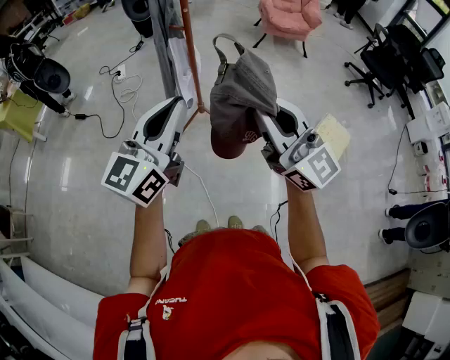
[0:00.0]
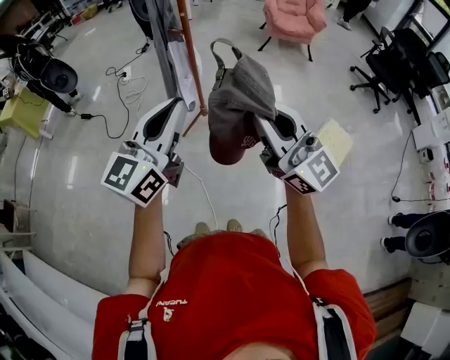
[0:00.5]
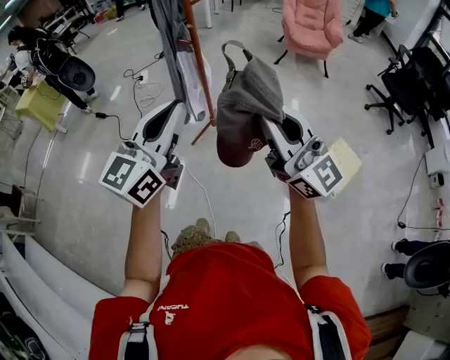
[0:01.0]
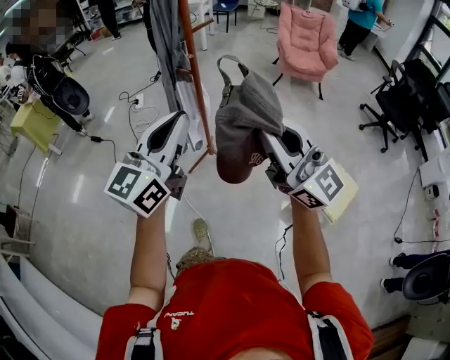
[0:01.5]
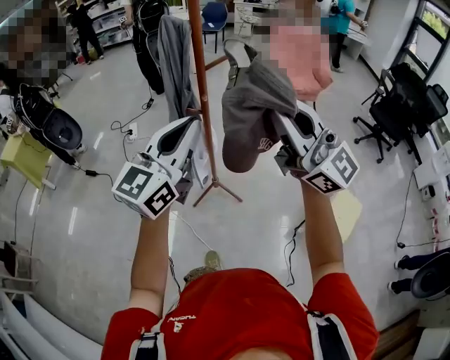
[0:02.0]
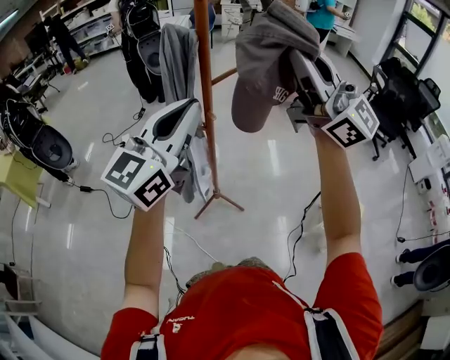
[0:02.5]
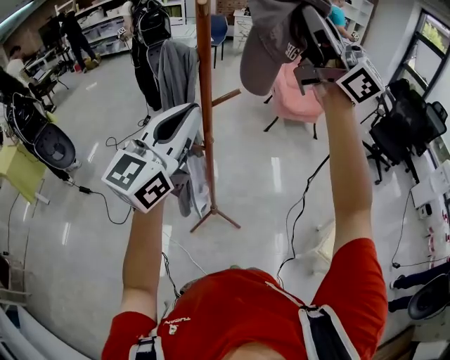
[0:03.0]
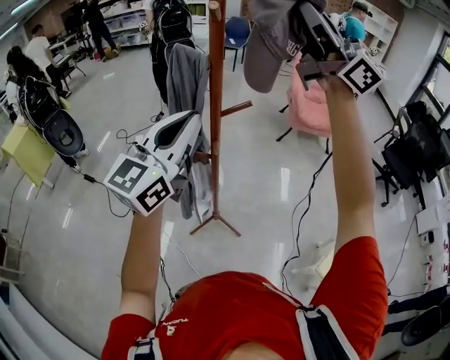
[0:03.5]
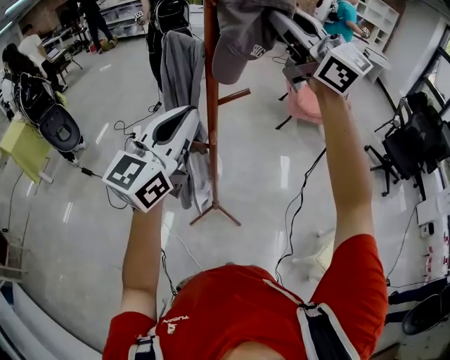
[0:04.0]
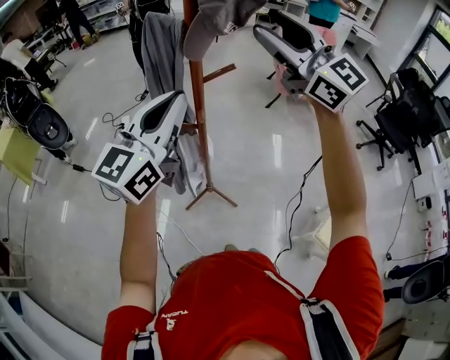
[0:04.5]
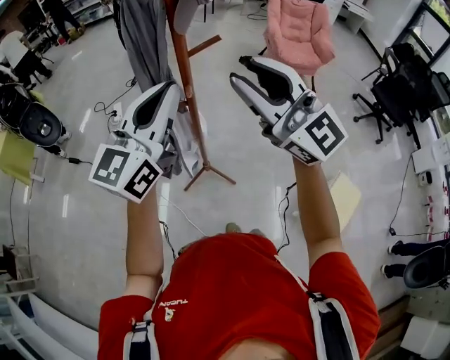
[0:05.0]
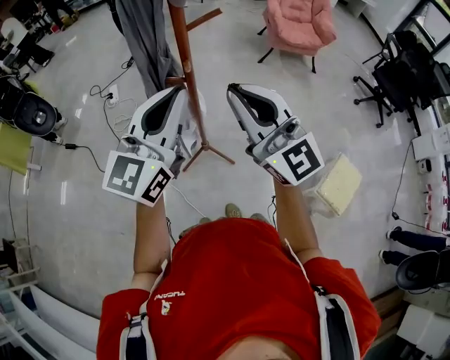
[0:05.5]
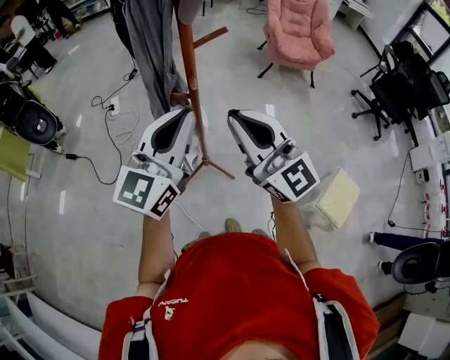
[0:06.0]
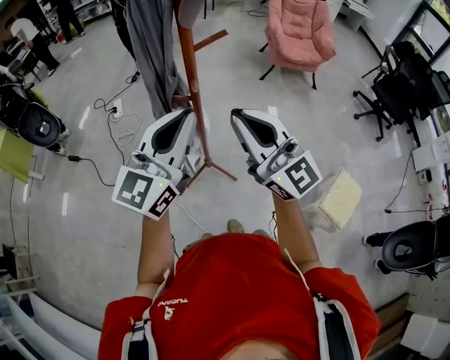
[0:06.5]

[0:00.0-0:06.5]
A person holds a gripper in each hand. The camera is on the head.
0:00.0 to 0:02.0: The right gripper travels forward and upward by roughly 30 cm. The left gripper goes some 25 cm forward.
0:02.0 to 0:04.5: The left gripper shifts roughly 15 cm forward. The right gripper heads forward, covering roughly 25 cm, and opens up.
0:04.5 to 0:06.5: The left gripper goes approximately 10 cm downward and backward, while the right gripper shifts about 25 cm downward and backward, and closes.

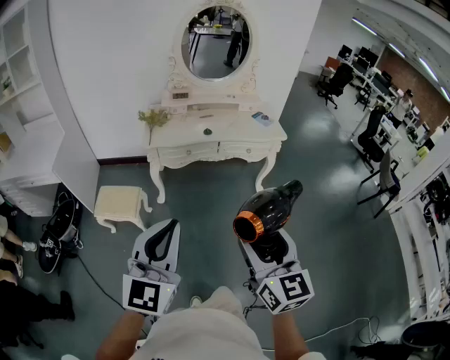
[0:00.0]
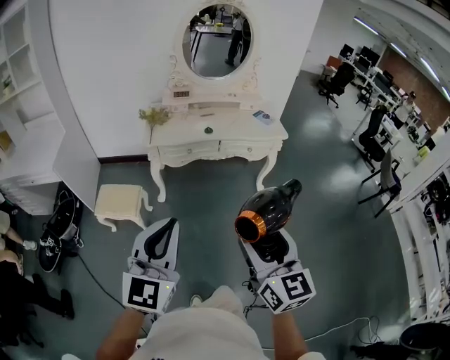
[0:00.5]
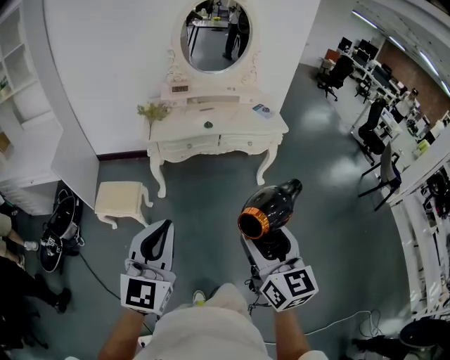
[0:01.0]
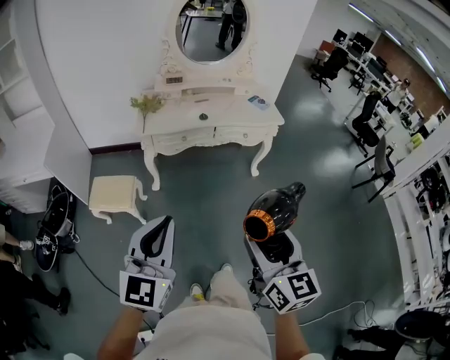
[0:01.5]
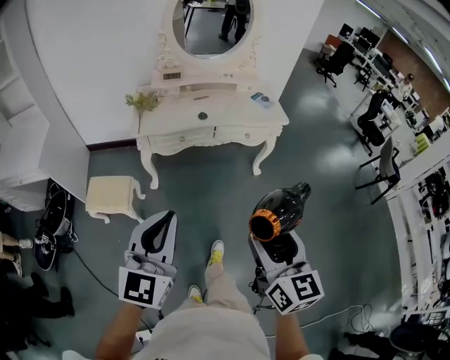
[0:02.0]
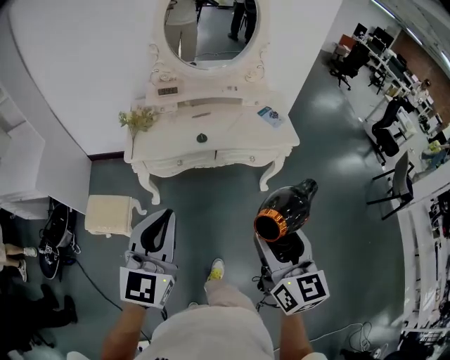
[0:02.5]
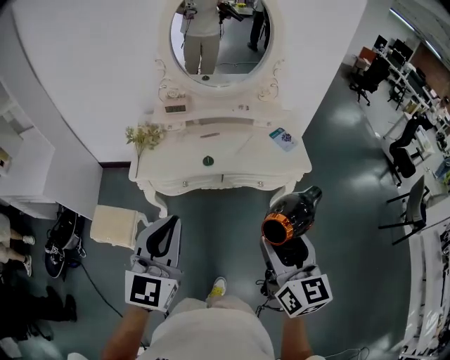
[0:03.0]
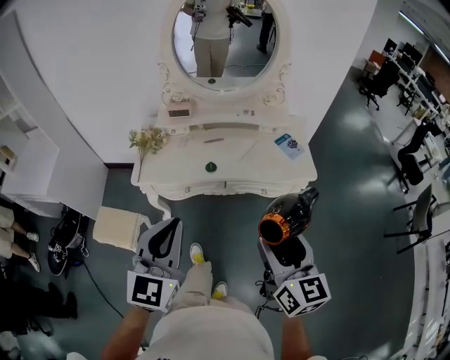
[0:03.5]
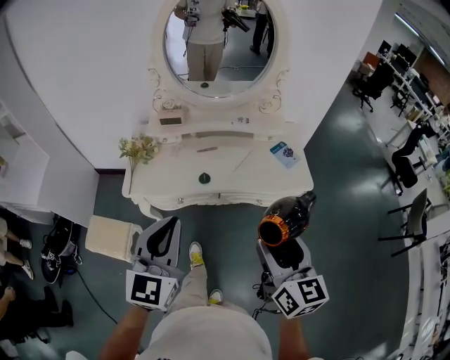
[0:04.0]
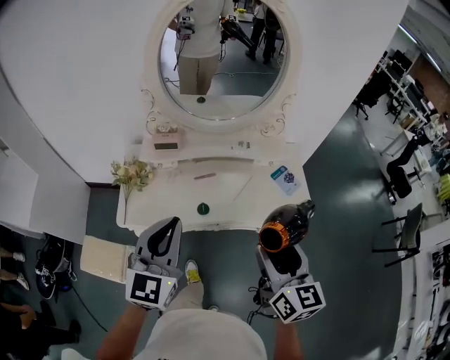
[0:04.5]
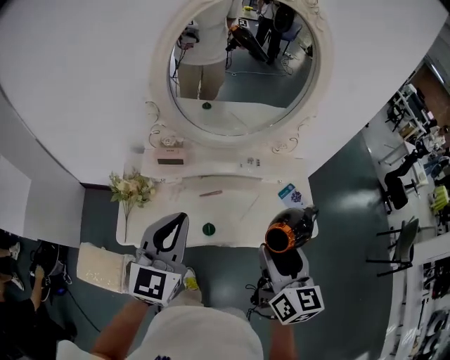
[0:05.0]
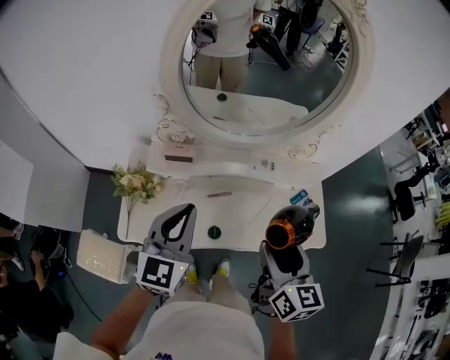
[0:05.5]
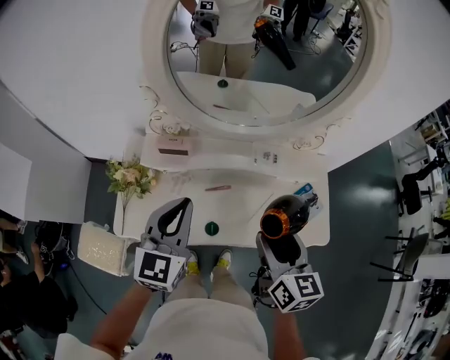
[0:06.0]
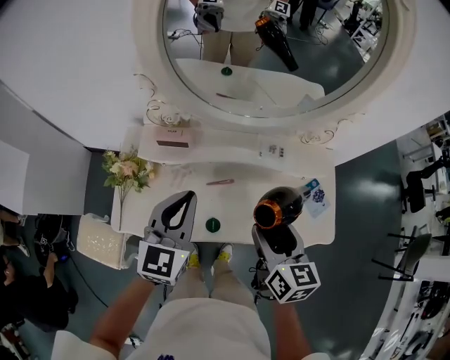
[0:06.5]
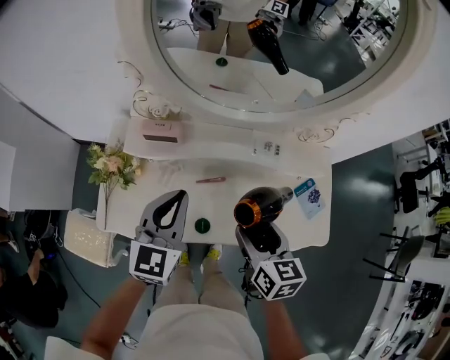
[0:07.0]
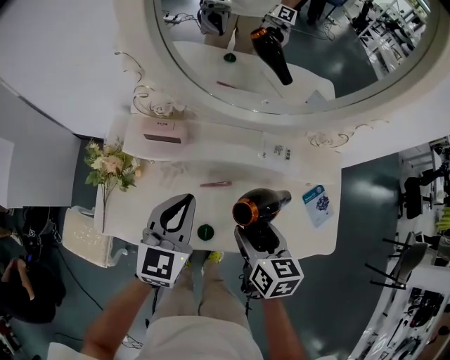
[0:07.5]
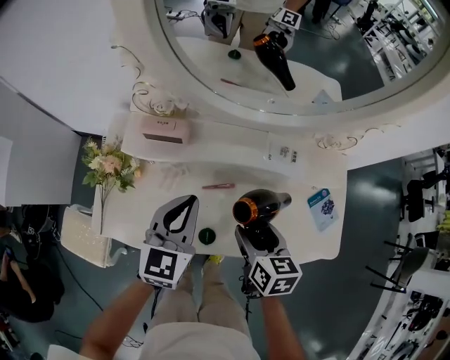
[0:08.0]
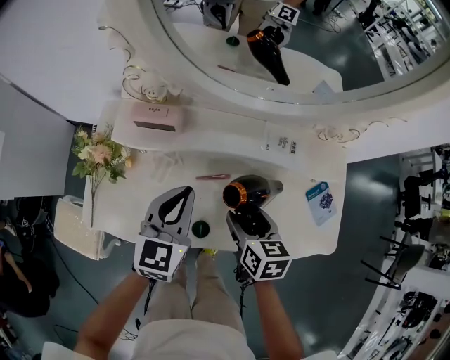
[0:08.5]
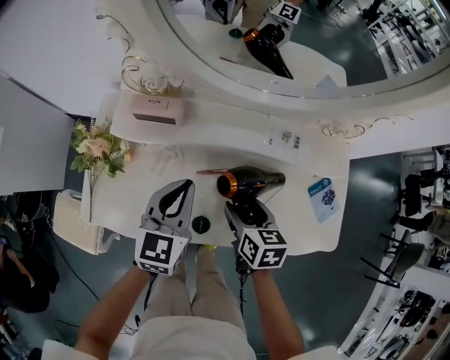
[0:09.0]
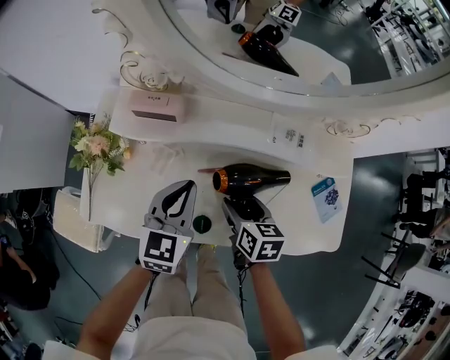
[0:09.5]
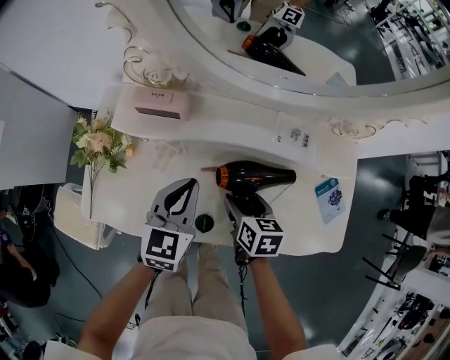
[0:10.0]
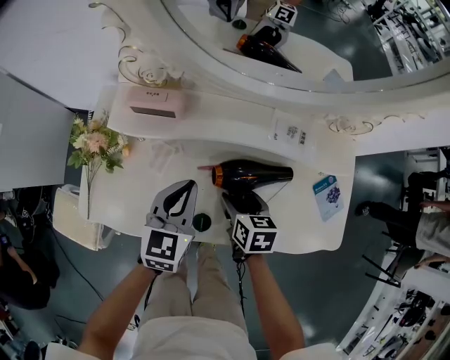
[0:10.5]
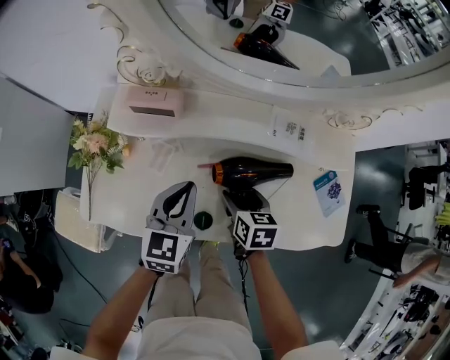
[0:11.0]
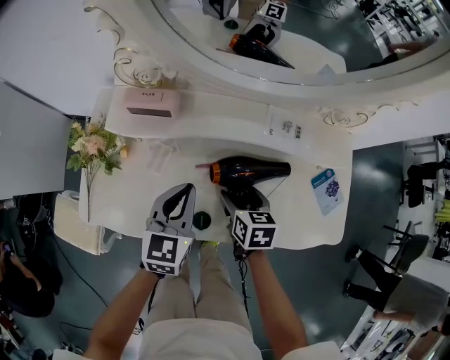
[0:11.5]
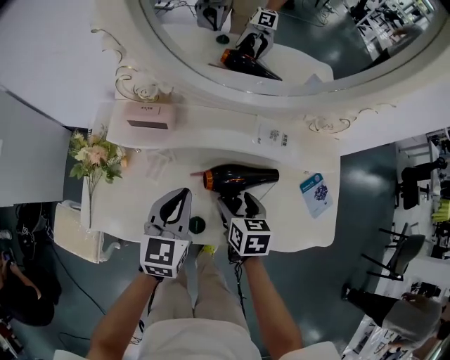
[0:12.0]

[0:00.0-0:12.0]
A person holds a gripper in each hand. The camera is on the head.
0:00.0 to 0:02.0: Both grippers move forward, about 10 cm.
0:02.0 to 0:04.0: The grippers both shift forward by some 40 cm.
0:04.0 to 0:06.0: Both grippers move forward, some 35 cm.
0:06.0 to 0:08.0: Both grippers move downward, approximately 20 cm. The right gripper swivels some 20 degrees.
0:08.0 to 0:10.0: Both grippers move downward, approximately 10 cm.
0:10.0 to 0:12.0: The grippers move only a little.

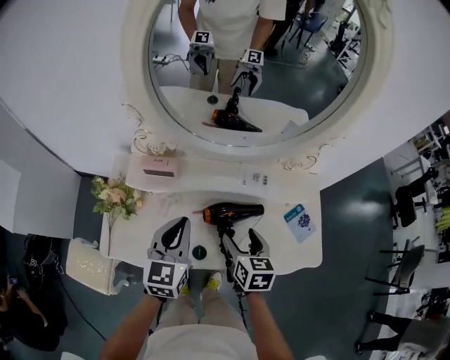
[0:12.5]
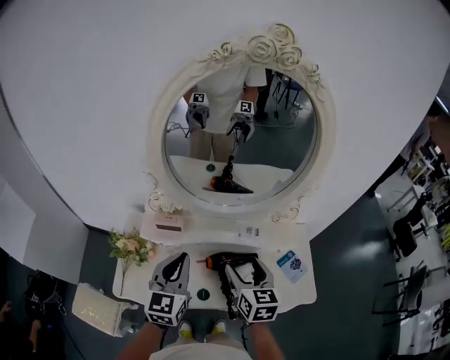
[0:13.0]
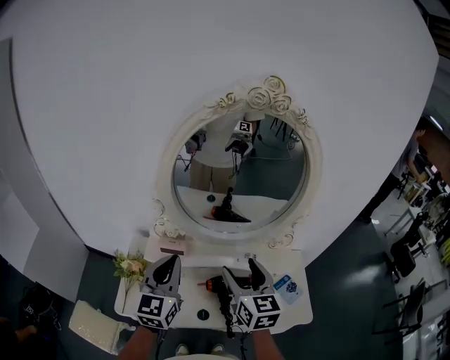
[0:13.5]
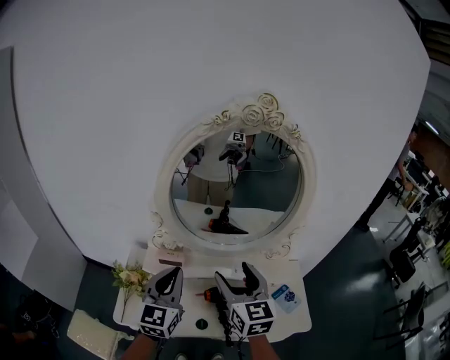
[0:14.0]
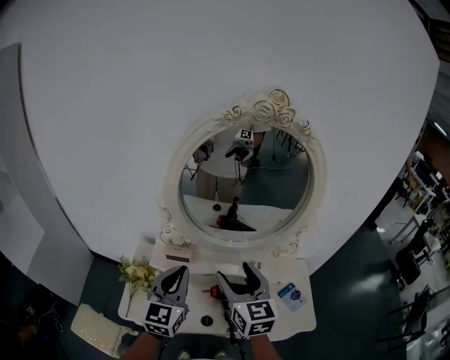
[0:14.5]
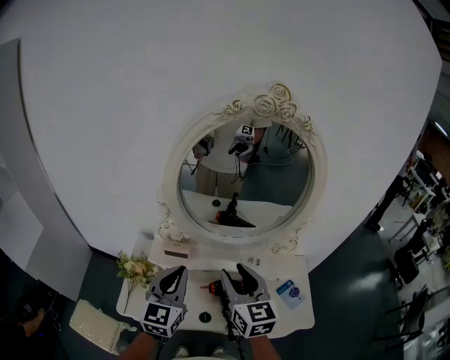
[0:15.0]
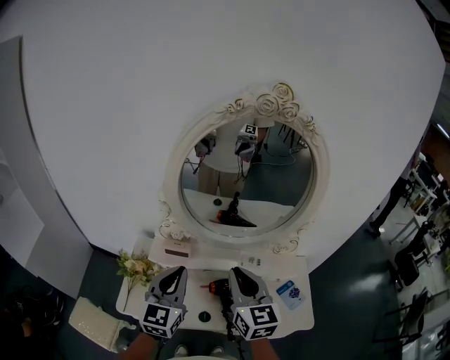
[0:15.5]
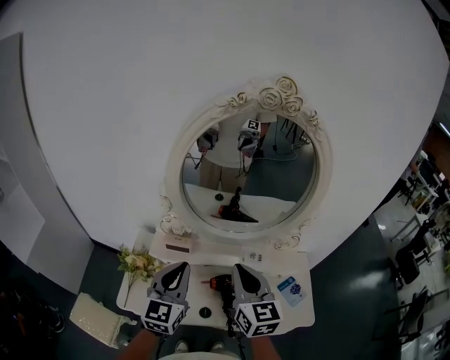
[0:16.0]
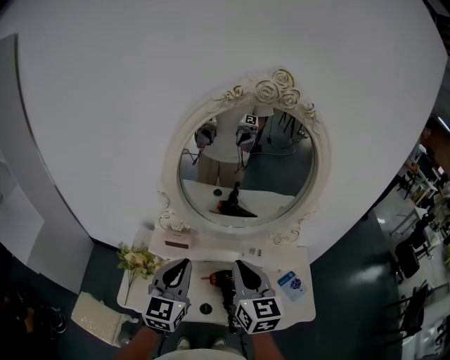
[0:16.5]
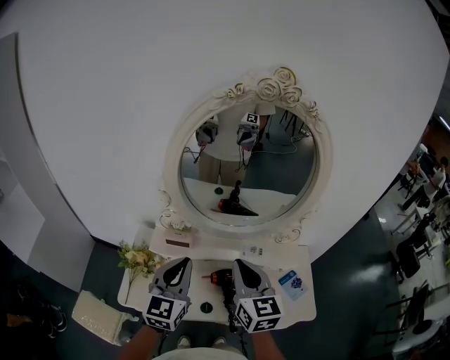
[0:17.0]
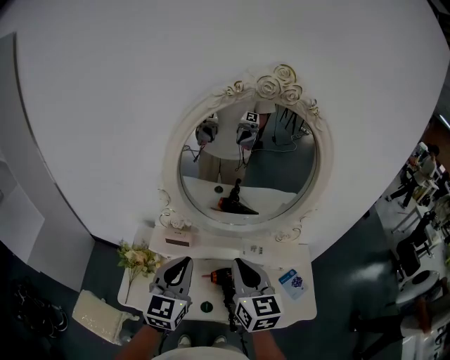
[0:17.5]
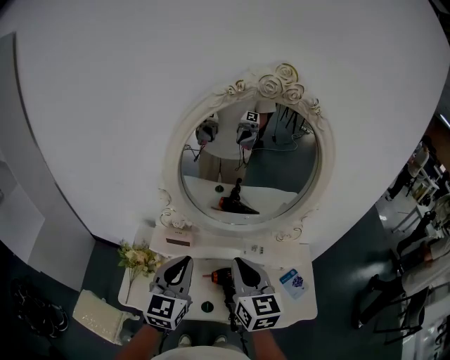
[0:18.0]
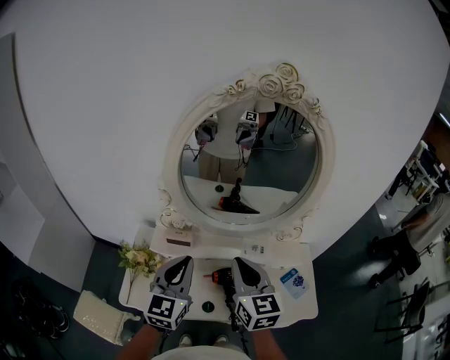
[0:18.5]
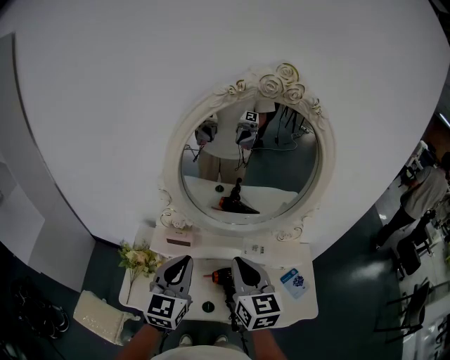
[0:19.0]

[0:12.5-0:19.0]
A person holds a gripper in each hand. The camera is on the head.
0:12.5 to 0:14.5: The left gripper moves upward, some 20 cm, while the right gripper goes approximately 30 cm upward, and turns by about 30 degrees.
0:14.5 to 0:17.0: The right gripper closes.
0:17.0 to 0:19.0: Both grippers stay put.

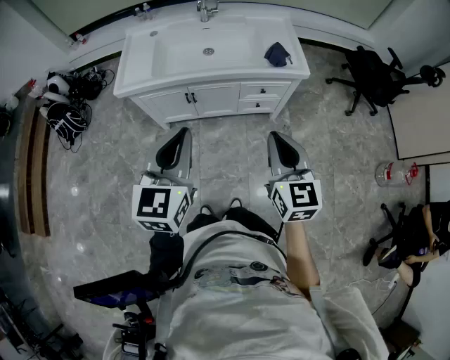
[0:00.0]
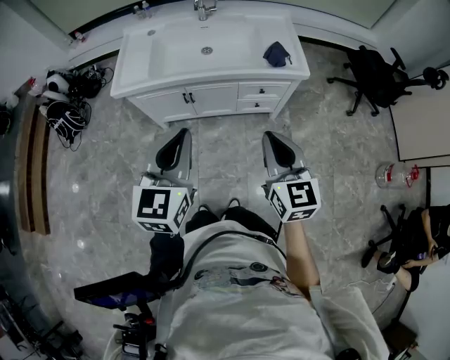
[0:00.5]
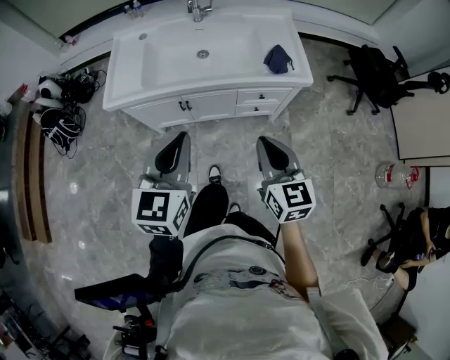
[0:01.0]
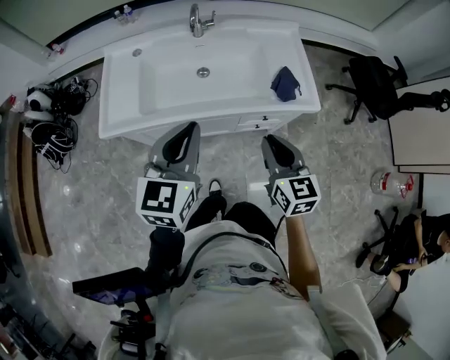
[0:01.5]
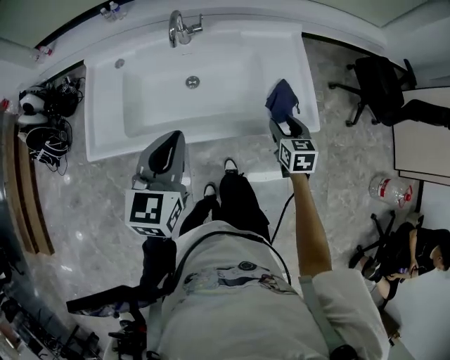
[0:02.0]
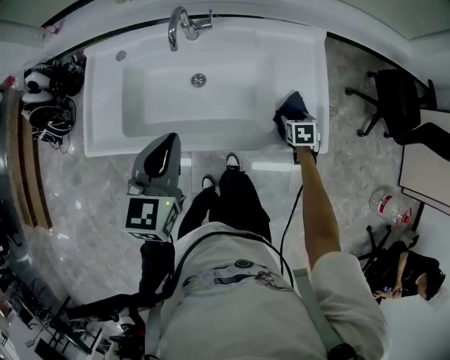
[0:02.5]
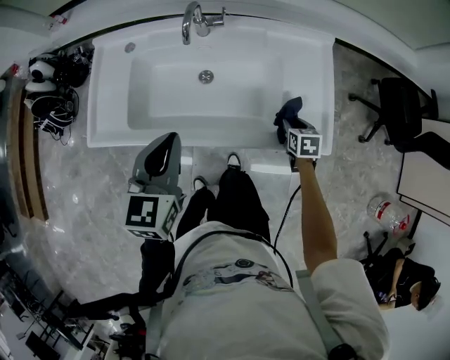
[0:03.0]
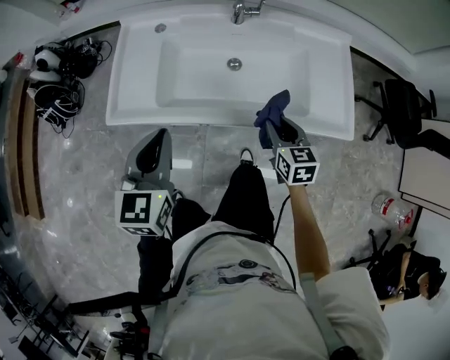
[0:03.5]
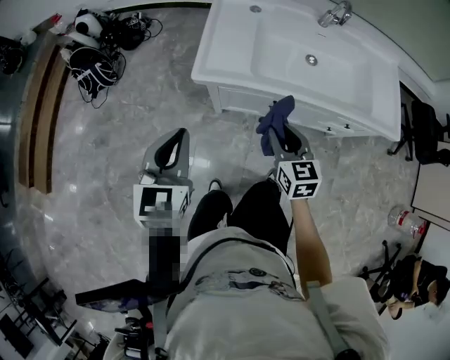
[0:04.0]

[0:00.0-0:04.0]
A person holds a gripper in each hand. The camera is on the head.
0:00.0 to 0:02.0: The left gripper goes some 40 cm forward. The right gripper moves forward and downward, roughly 50 cm, swivels approximately 30 degrees, and opens up.
0:02.0 to 0:04.0: Both grippers are carried to the left and backward, roughly 50 cm. The right gripper swivels approximately 20 degrees, and closes up.
